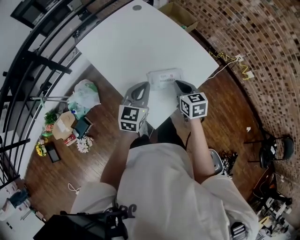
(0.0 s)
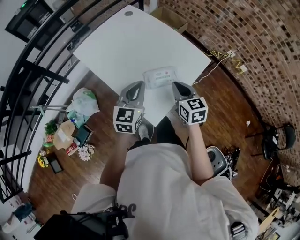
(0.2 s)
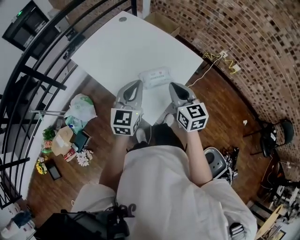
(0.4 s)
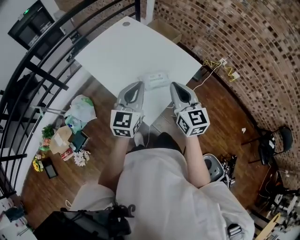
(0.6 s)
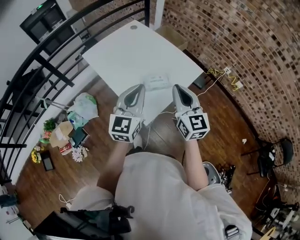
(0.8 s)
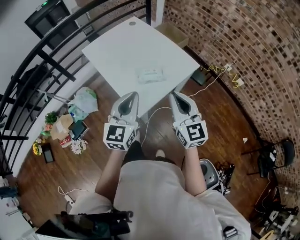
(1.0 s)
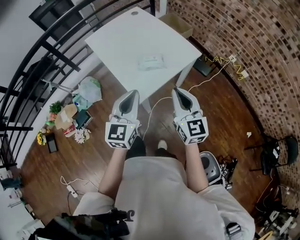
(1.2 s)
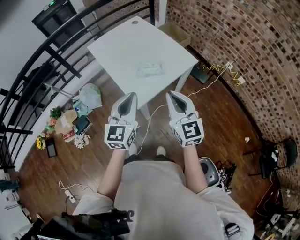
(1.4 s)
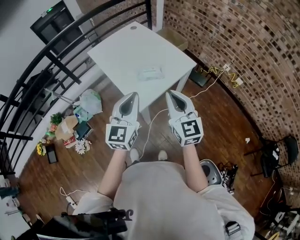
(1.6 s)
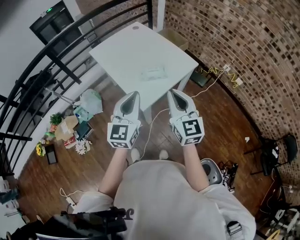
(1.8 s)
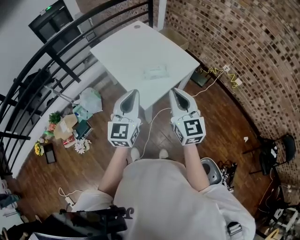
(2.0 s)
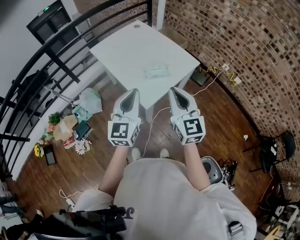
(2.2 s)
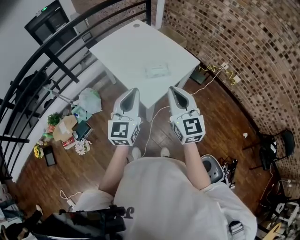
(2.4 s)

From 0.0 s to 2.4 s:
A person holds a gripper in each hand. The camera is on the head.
From 0.0 s to 1.2 s: The right gripper heads backward, upward and to the right, covering roughly 30 cm, and tilts its fingers some 30 degrees upward; the left gripper goes roughly 25 cm backward and upward.
From 1.2 s to 2.4 s: The right gripper is displaced to the left and upward by about 10 cm; the left gripper heads to the left, covering approximately 10 cm.

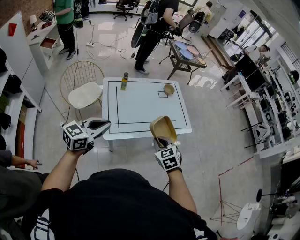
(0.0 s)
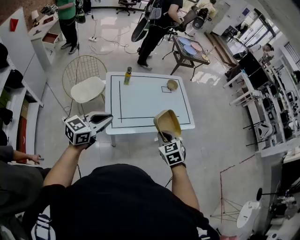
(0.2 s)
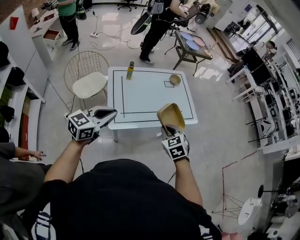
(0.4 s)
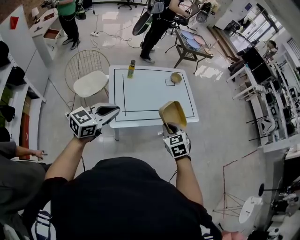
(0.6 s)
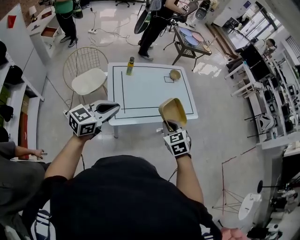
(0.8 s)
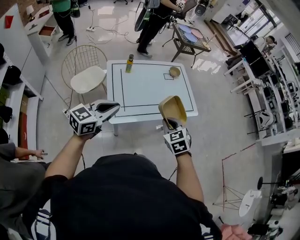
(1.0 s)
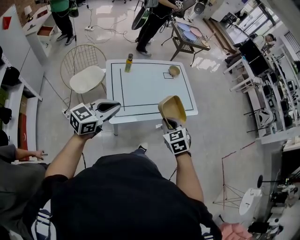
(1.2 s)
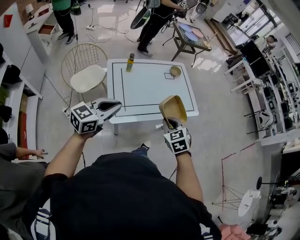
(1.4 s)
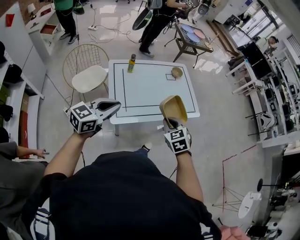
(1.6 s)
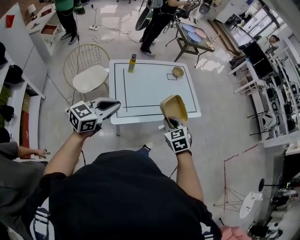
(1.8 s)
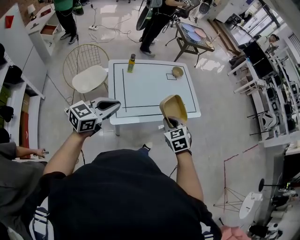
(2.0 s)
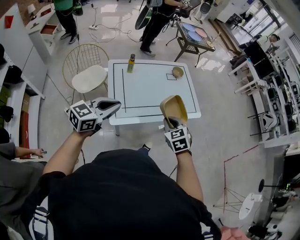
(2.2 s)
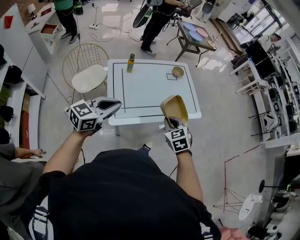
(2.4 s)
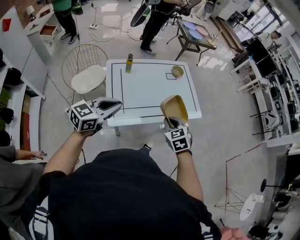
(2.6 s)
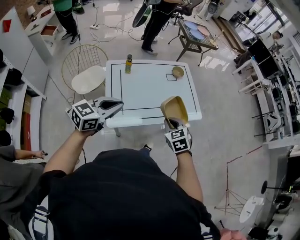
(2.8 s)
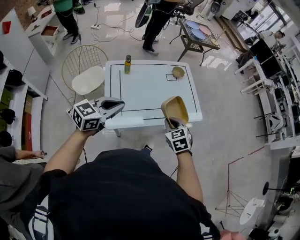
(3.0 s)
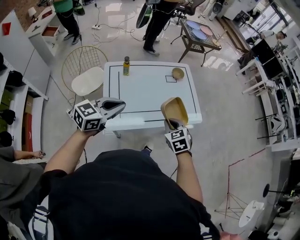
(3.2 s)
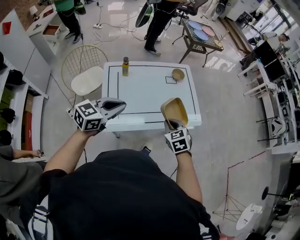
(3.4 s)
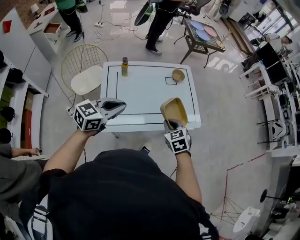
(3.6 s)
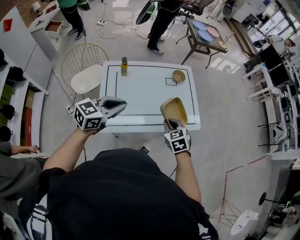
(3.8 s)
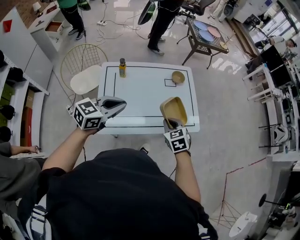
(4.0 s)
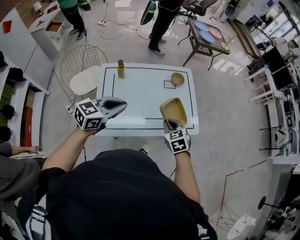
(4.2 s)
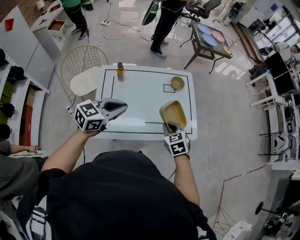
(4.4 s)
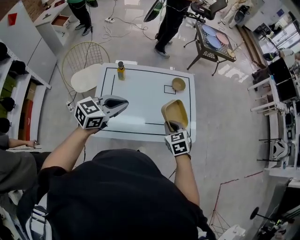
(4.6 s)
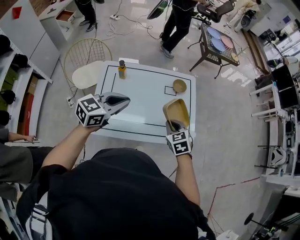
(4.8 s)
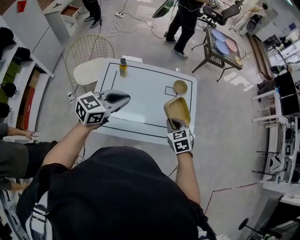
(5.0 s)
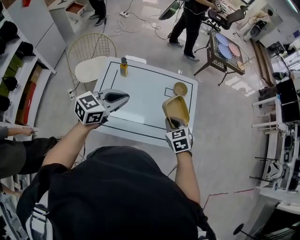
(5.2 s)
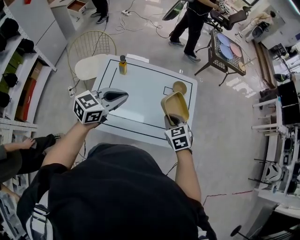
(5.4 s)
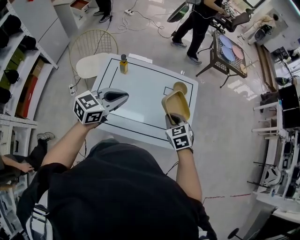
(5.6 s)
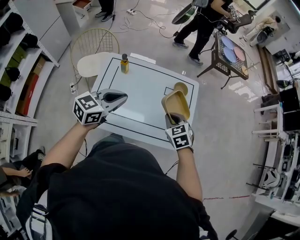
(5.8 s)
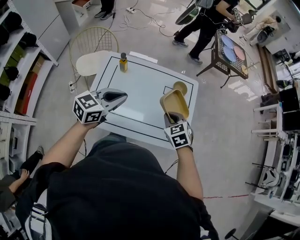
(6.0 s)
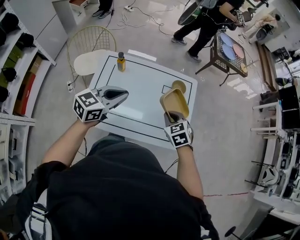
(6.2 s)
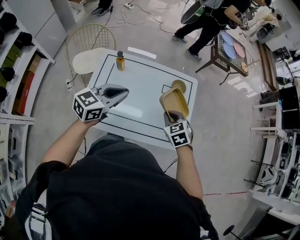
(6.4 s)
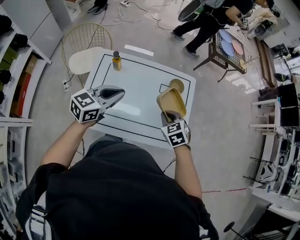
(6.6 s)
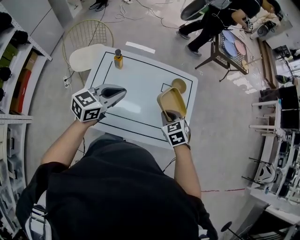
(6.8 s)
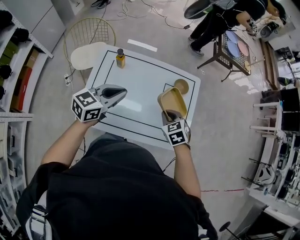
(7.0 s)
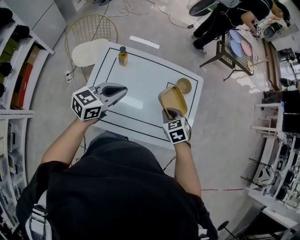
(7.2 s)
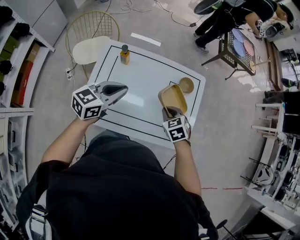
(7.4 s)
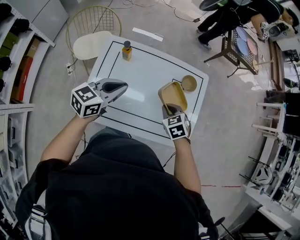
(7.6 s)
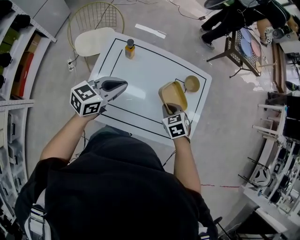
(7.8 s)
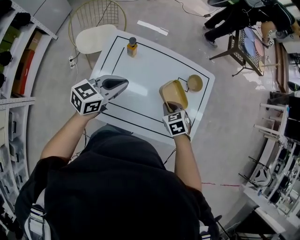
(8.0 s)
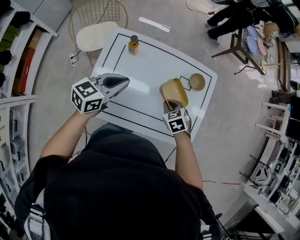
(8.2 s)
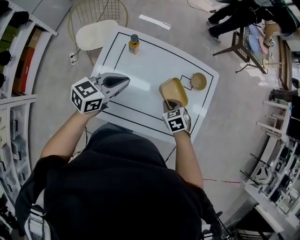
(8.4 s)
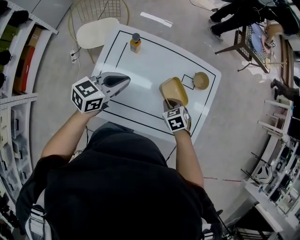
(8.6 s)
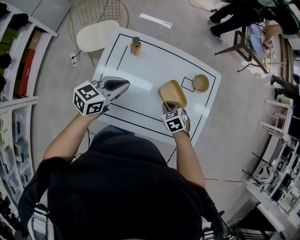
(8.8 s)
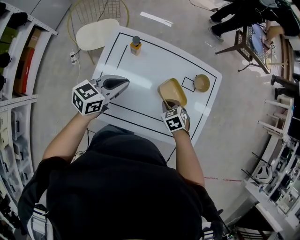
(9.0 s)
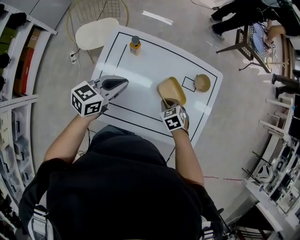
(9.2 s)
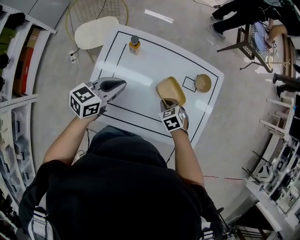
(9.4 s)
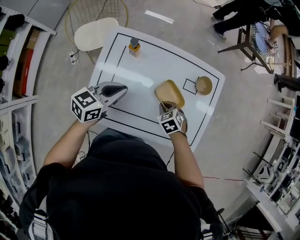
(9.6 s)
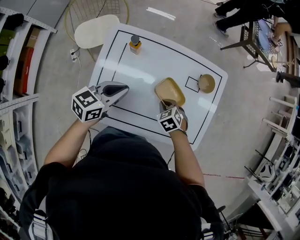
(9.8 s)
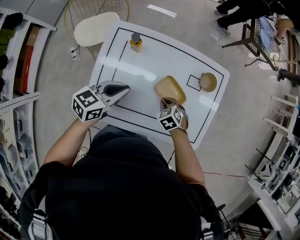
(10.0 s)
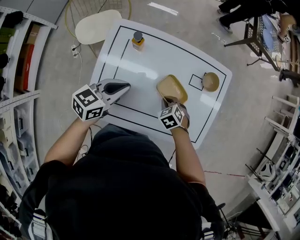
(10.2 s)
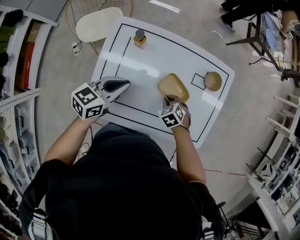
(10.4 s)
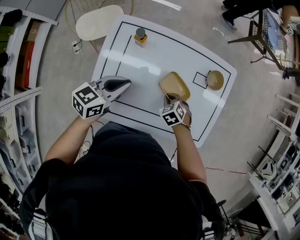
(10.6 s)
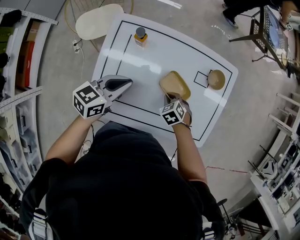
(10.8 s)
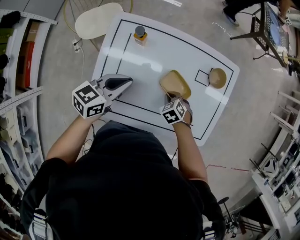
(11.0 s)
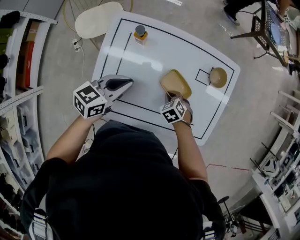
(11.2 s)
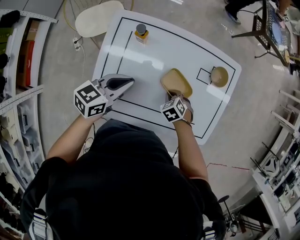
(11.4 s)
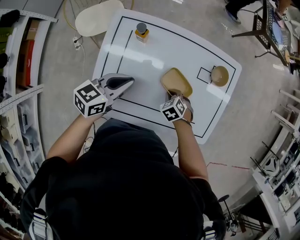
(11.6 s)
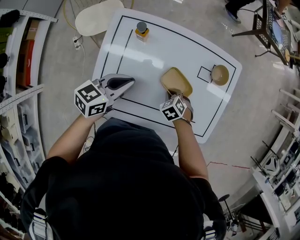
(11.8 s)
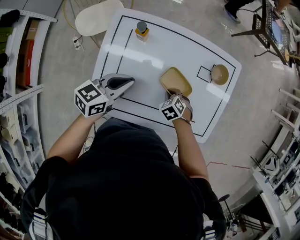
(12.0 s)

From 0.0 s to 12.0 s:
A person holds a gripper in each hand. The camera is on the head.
From 0.0 s to 1.6 s: The grippers stay close to where they were, moving slightly.
From 1.6 s to 3.0 s: The left gripper moves forward and to the right, approximately 10 cm. Meanwhile the right gripper goes about 10 cm forward.
From 3.0 s to 4.4 s: The left gripper shifts about 15 cm forward and to the right. The right gripper travels forward by about 15 cm.
From 4.4 s to 6.0 s: The left gripper heads forward, covering some 5 cm, while the right gripper shifts approximately 10 cm forward.
From 6.0 s to 7.6 s: The right gripper shifts roughly 10 cm downward and forward. Meanwhile the left gripper travels forward and downward by approximately 10 cm.
From 7.6 s to 9.0 s: The right gripper goes about 10 cm downward, while the left gripper shifts roughly 5 cm downward.
From 9.0 s to 10.4 s: Both grippers move downward, roughly 5 cm.
From 10.4 s to 12.0 s: The grippers stay close to where they were, moving slightly.

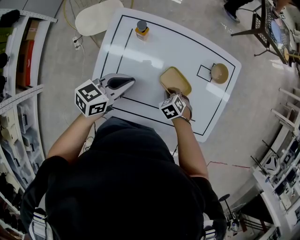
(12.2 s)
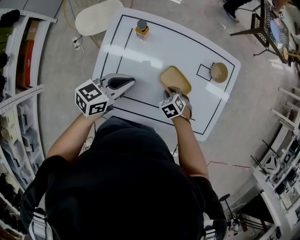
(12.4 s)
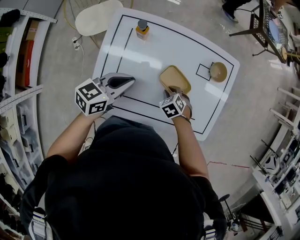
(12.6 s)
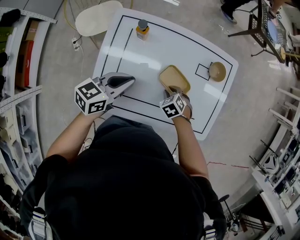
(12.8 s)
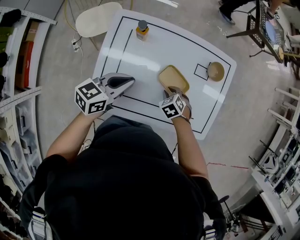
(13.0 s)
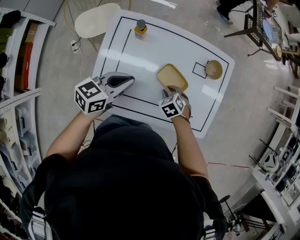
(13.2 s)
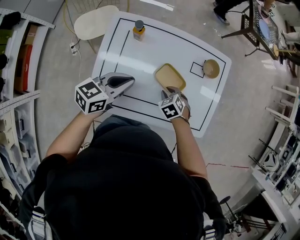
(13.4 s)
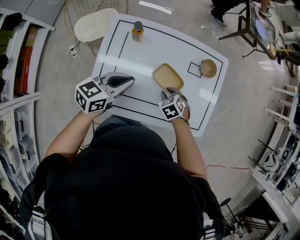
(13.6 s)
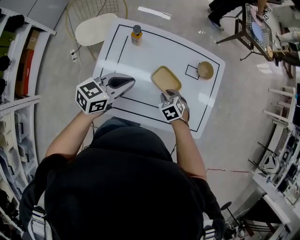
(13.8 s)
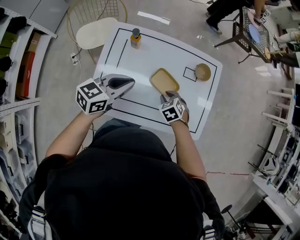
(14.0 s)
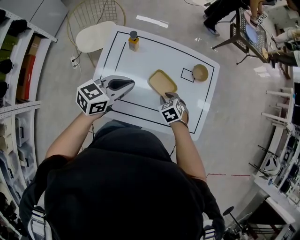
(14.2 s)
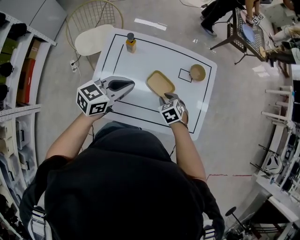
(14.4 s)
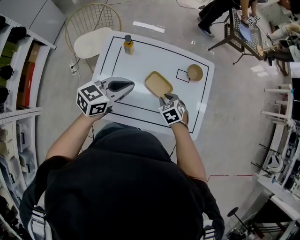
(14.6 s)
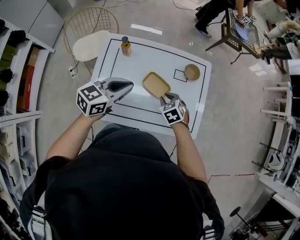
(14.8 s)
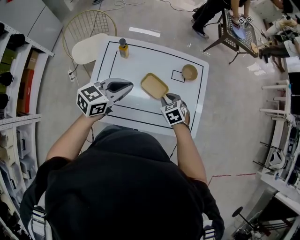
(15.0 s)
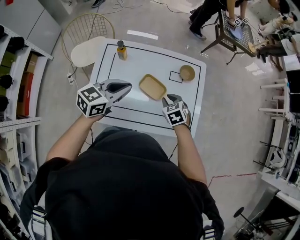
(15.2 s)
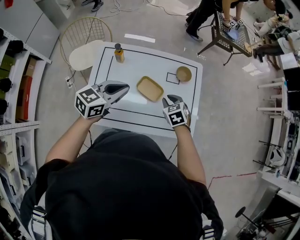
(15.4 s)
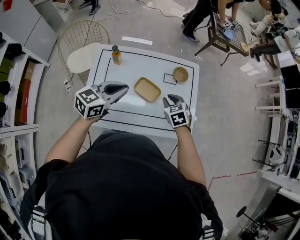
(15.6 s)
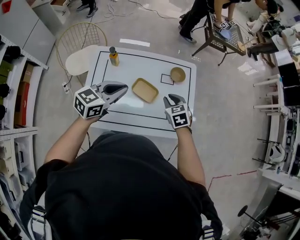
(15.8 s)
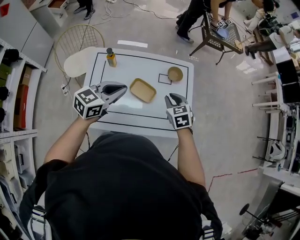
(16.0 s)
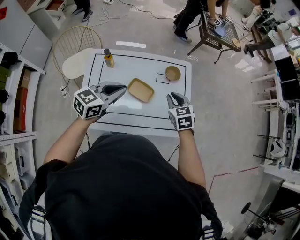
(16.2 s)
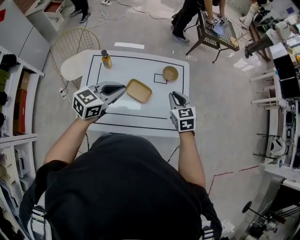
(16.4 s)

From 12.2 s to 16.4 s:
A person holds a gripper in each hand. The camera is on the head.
From 12.2 s to 13.6 s: The grippers both shift upward by approximately 5 cm.
From 13.6 s to 15.0 s: The two grippers go approximately 10 cm upward and to the right.
From 15.0 s to 16.4 s: The right gripper goes approximately 15 cm upward and to the right, and changes its angle by some 30 degrees, while the left gripper changes place by roughly 5 cm.

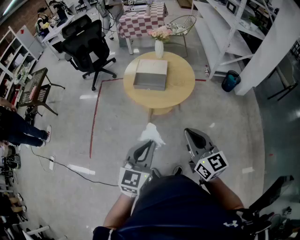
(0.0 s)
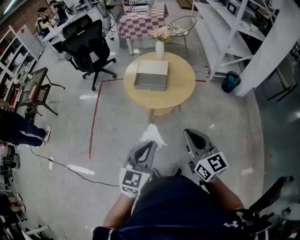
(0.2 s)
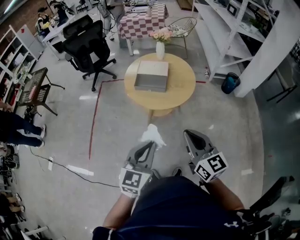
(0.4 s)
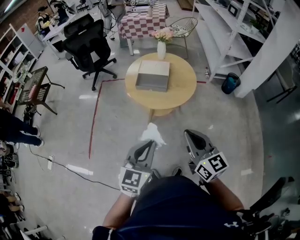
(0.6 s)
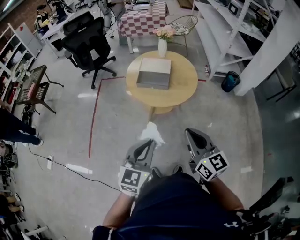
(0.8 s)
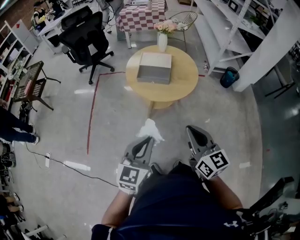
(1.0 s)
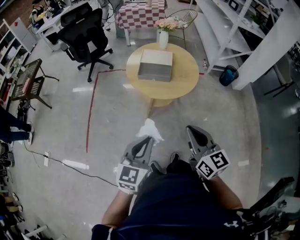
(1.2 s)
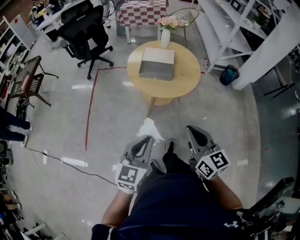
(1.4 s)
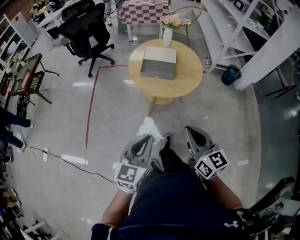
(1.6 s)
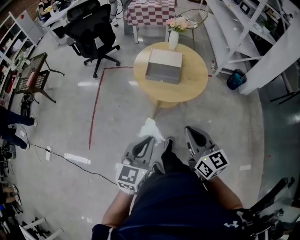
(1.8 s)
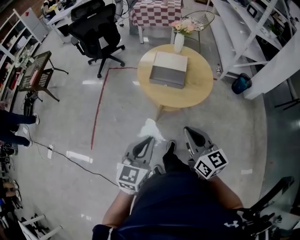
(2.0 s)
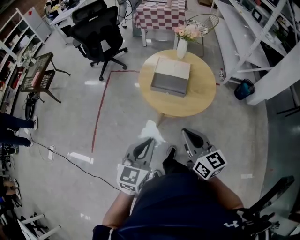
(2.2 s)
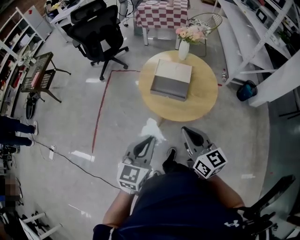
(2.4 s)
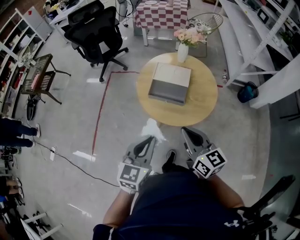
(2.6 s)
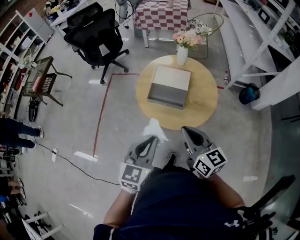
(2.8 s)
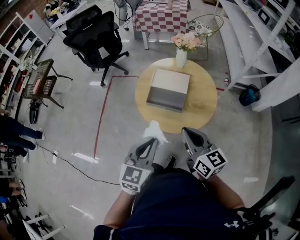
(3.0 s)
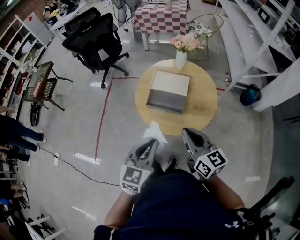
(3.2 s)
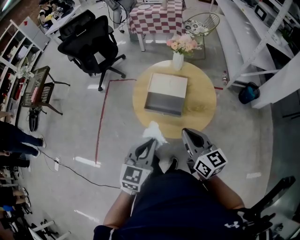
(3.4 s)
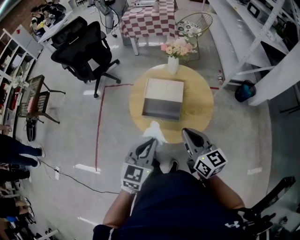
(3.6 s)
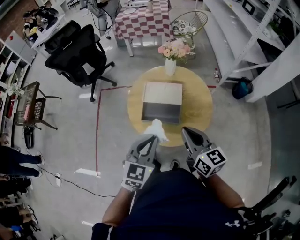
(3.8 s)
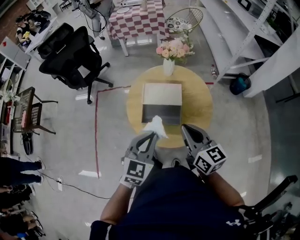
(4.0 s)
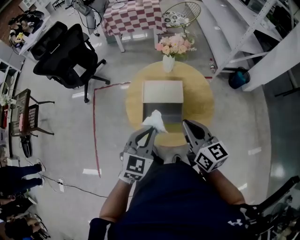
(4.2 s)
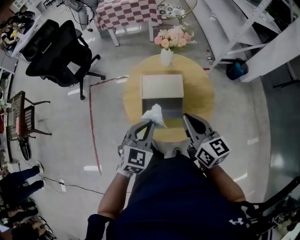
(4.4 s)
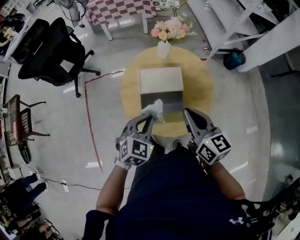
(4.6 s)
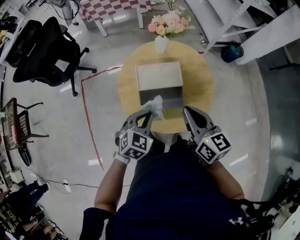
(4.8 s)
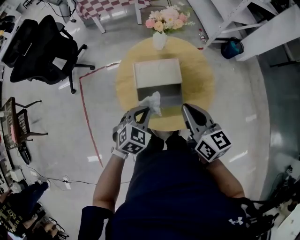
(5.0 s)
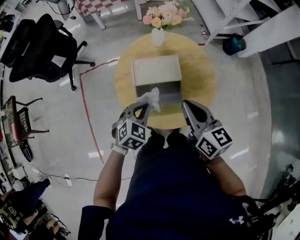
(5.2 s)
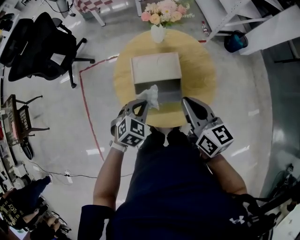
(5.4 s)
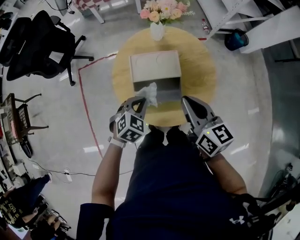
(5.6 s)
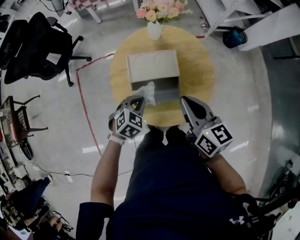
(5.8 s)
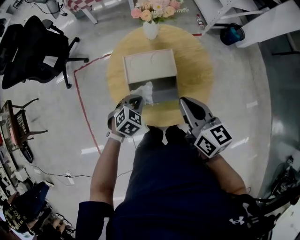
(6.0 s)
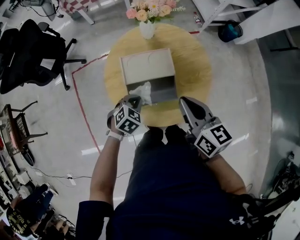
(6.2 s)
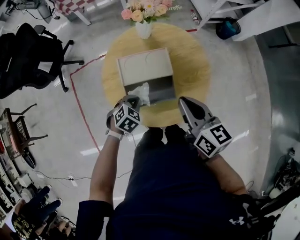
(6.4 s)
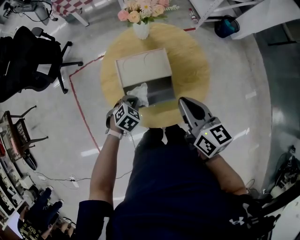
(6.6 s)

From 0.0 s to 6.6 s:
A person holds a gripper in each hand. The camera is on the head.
From 0.0 s to 1.6 s: Both grippers travel together to the left, roughly 10 cm.
From 1.6 s to 3.2 s: The two grippers go approximately 25 cm forward.
From 3.2 s to 5.0 s: The right gripper is displaced forward by about 15 cm, and turns by roughly 20 degrees. Meanwhile the left gripper goes roughly 25 cm forward and downward, and rotates some 40 degrees.
From 5.0 s to 6.6 s: The left gripper goes roughly 15 cm downward, and turns by about 20 degrees; the right gripper moves approximately 5 cm.
